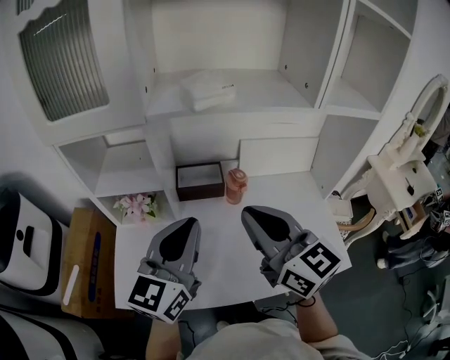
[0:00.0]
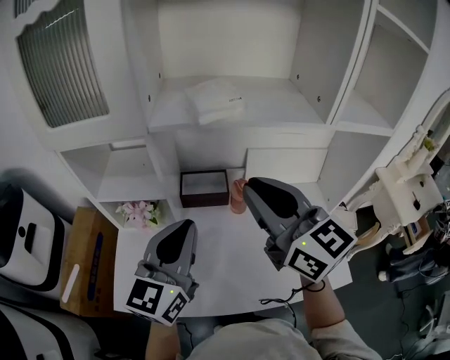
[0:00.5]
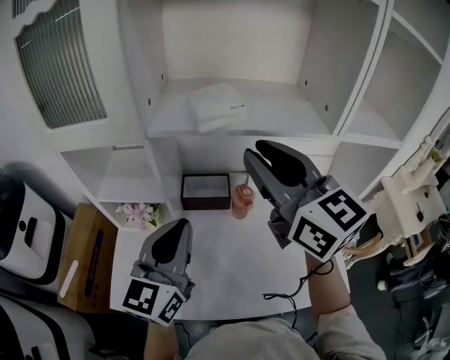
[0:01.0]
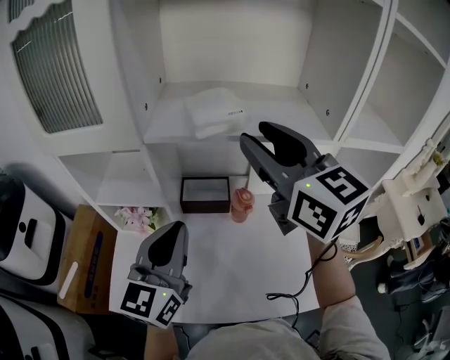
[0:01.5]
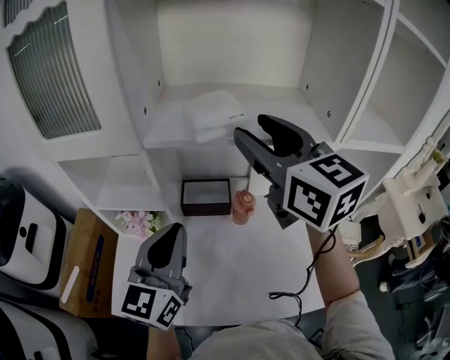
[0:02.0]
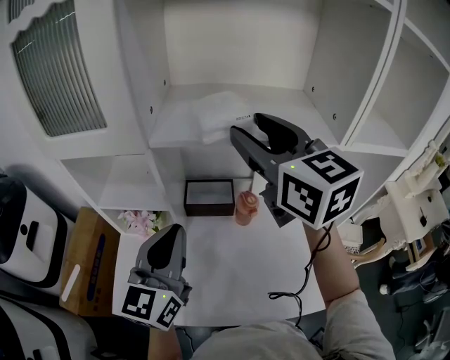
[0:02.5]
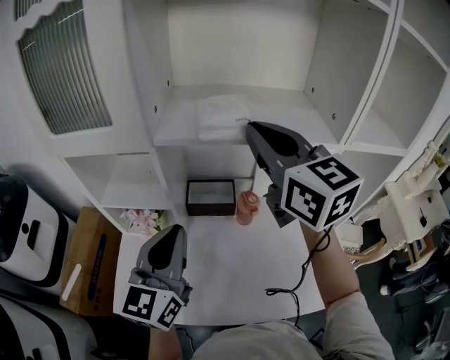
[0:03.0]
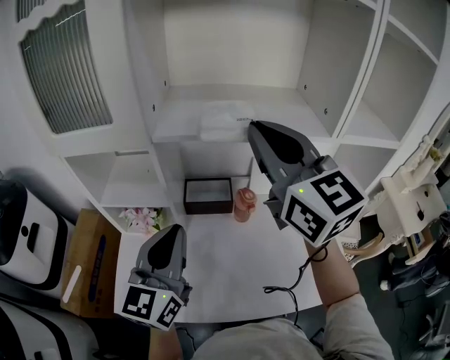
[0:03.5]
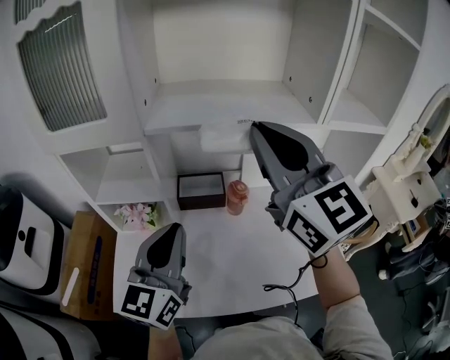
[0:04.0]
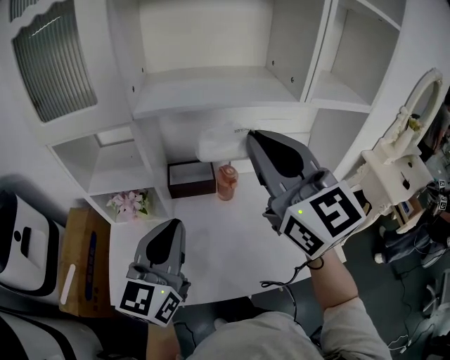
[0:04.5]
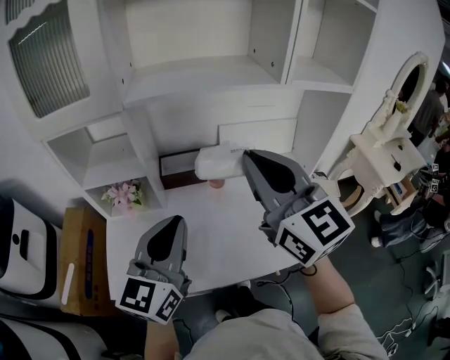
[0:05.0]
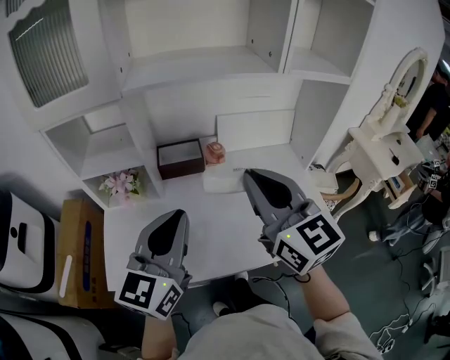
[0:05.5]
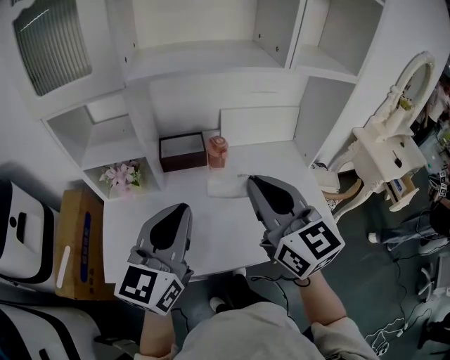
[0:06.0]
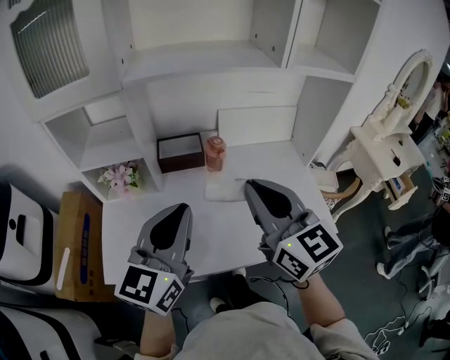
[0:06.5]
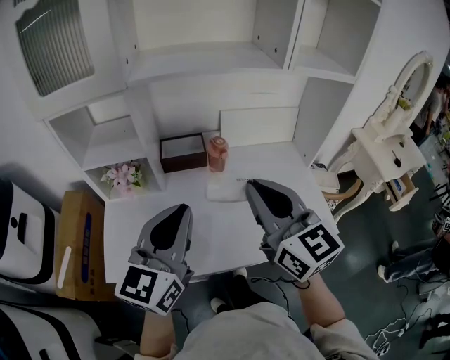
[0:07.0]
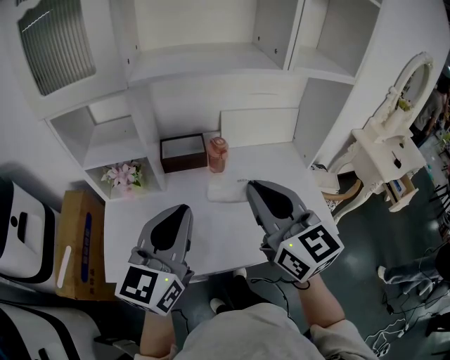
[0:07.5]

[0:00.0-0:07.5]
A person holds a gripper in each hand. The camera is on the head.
0:00.0 to 0:02.0: The right gripper heads forward and upward, covering approximately 25 cm, and opens. The left gripper heads forward, covering about 5 cm.
0:02.0 to 0:04.0: The right gripper is displaced backward by approximately 10 cm, and closes its fingers.
0:04.0 to 0:05.5: The right gripper is displaced downward and backward by roughly 20 cm. The left gripper moves backward, some 10 cm.
0:05.5 to 0:07.5: The grippers move only a little.

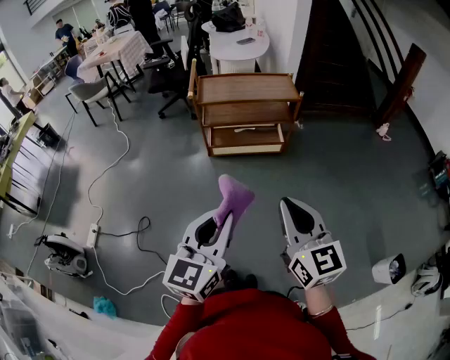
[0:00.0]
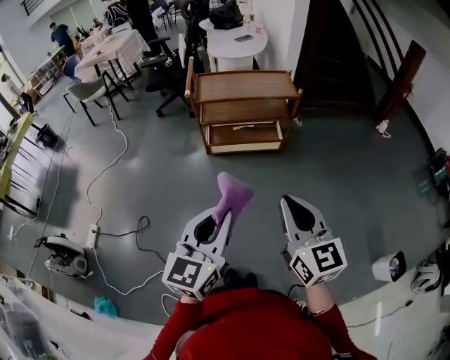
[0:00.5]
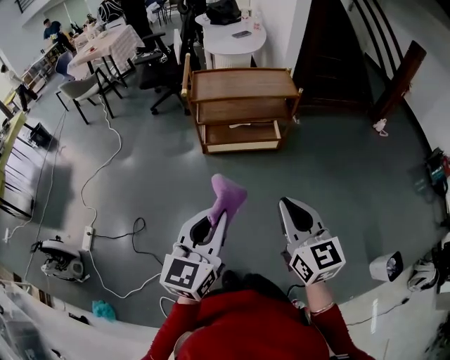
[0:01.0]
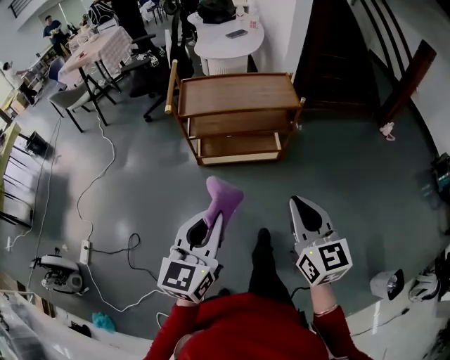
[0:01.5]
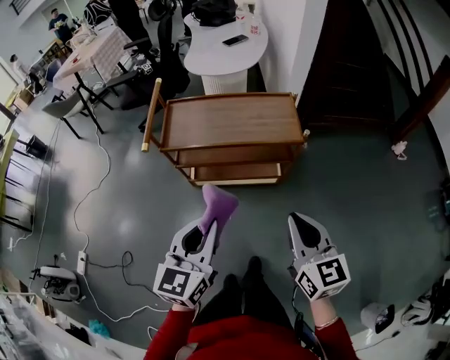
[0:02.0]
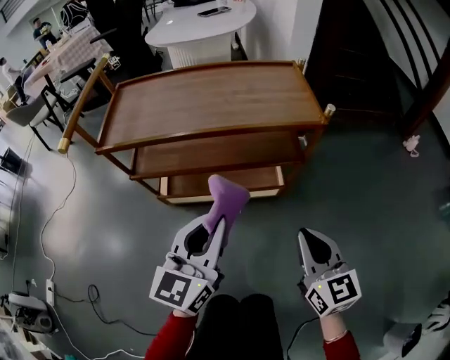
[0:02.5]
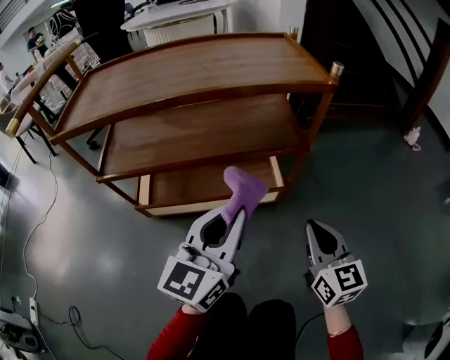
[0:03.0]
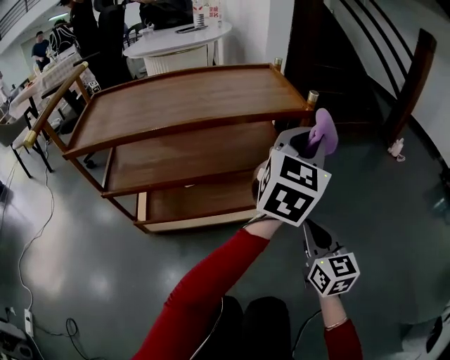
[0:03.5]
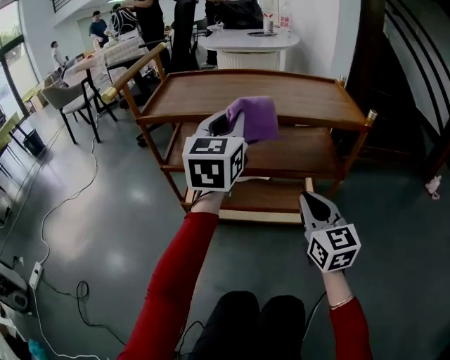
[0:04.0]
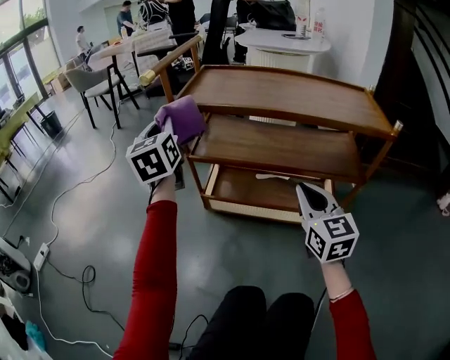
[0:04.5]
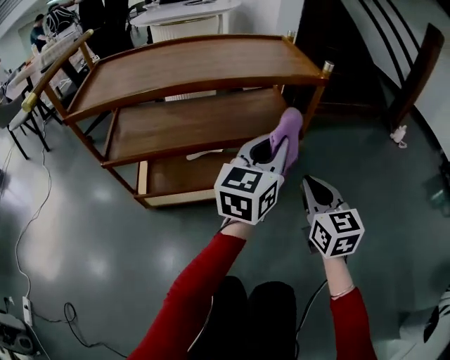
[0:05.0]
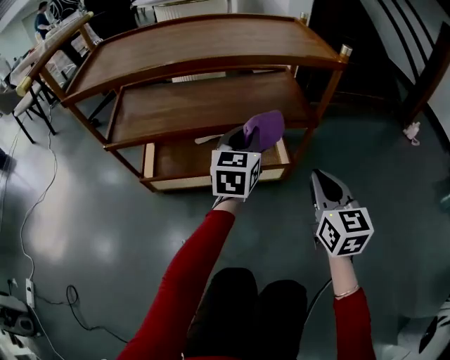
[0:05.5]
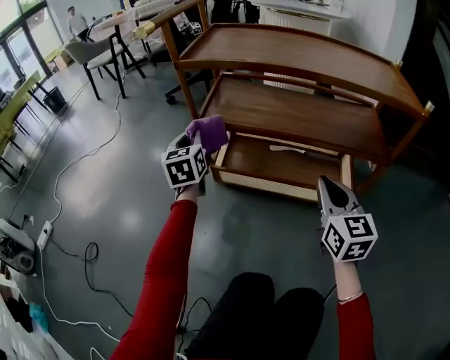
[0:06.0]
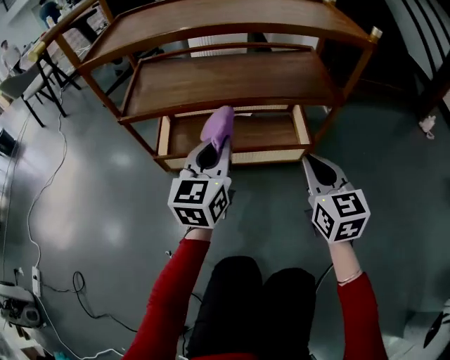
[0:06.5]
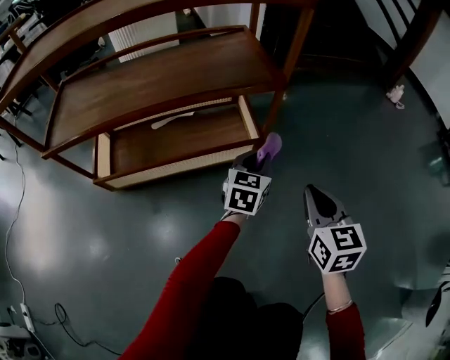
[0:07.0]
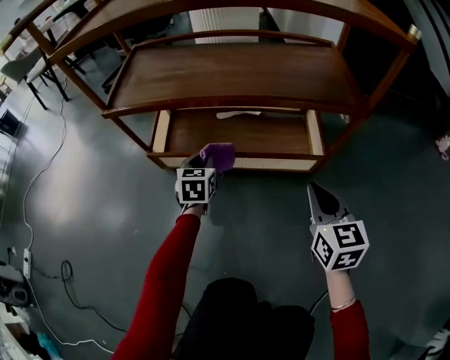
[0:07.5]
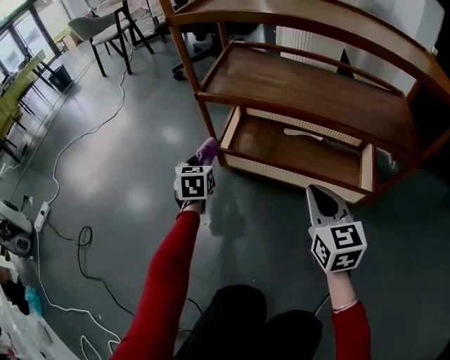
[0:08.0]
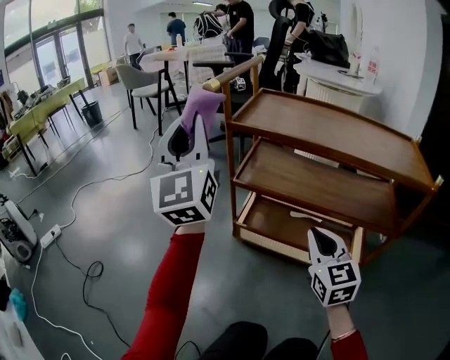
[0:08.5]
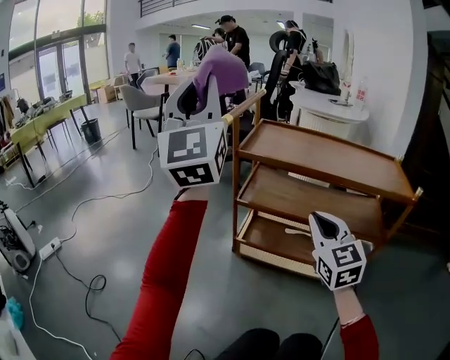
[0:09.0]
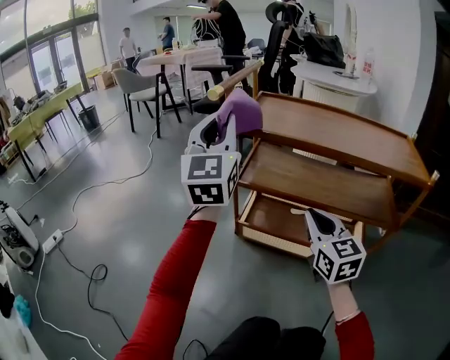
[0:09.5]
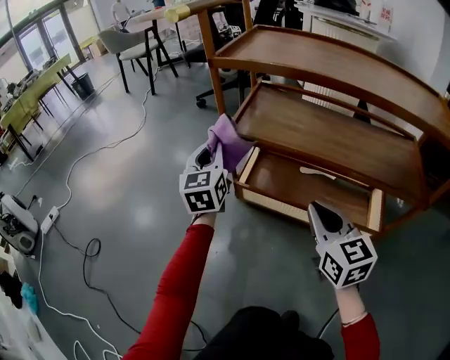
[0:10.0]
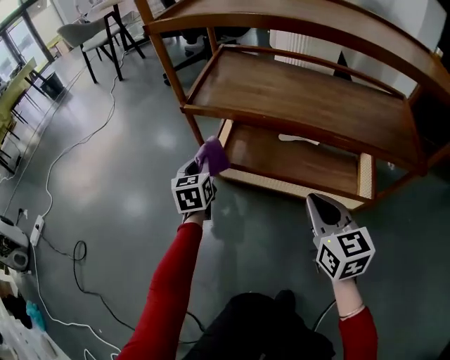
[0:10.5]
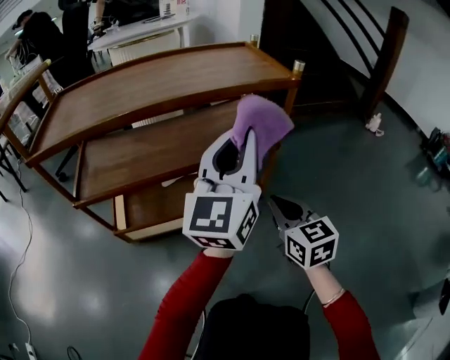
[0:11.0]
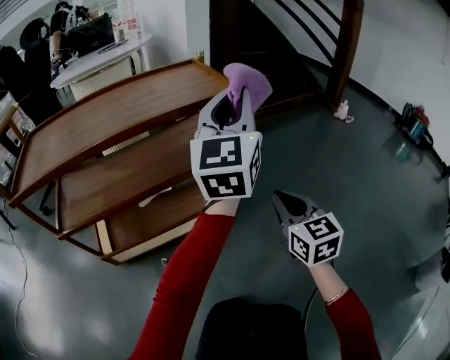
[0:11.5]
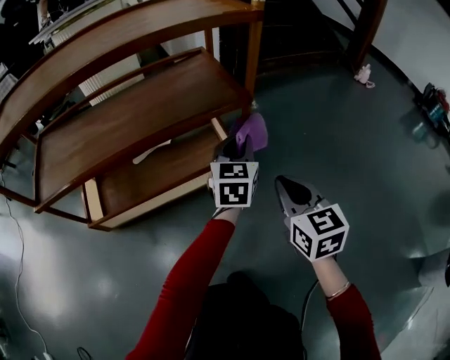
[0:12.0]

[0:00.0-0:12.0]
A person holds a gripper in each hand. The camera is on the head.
0:00.0 to 0:02.0: Both grippers travel together forward, about 30 cm.
0:02.0 to 0:04.0: The left gripper ends up approximately 35 cm from where it was, and changes its angle by approximately 20 degrees. Meanwhile the right gripper is displaced downward by roughly 30 cm.
0:04.0 to 0:06.0: The left gripper moves about 35 cm, and swivels some 30 degrees.
0:06.0 to 0:08.0: The right gripper moves downward, about 10 cm; the left gripper is displaced downward by some 20 cm.
0:08.0 to 0:10.0: The right gripper moves about 20 cm upward and comes back. Meanwhile the left gripper travels upward and back again, roughly 60 cm each way, and rotates about 30 degrees.
0:10.0 to 0:12.0: The right gripper swings up and down, about 10 cm each way, with 2 reversals, and changes its angle by roughly 50 degrees. The left gripper swings up and down, approximately 40 cm each way, with 2 reversals, and rotates roughly 60 degrees.

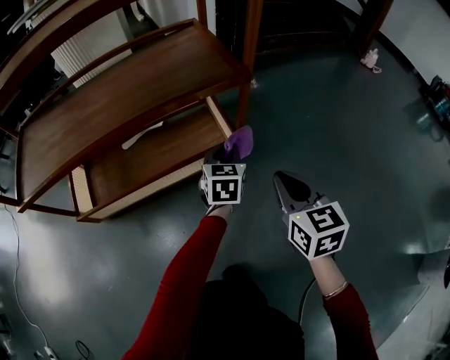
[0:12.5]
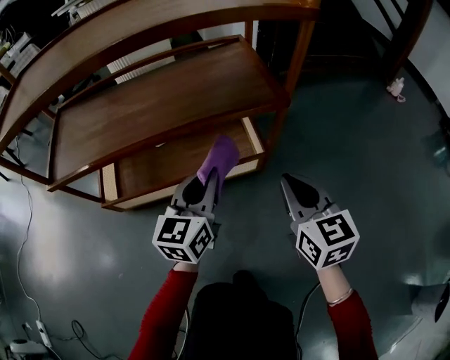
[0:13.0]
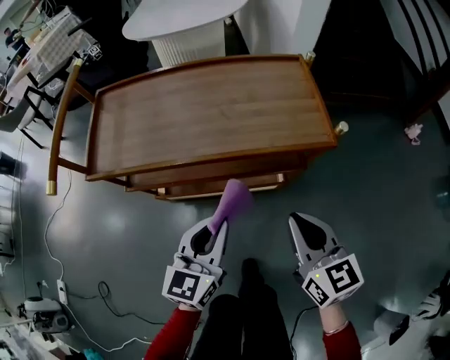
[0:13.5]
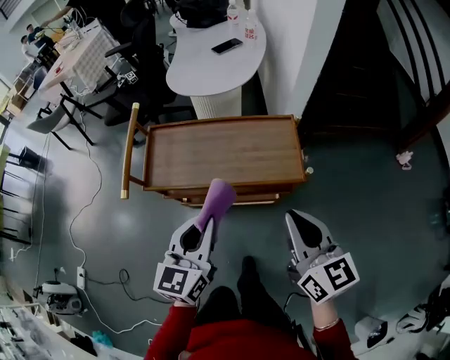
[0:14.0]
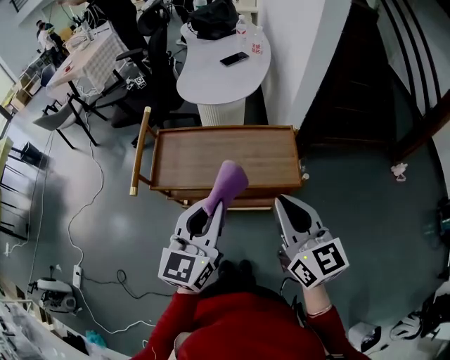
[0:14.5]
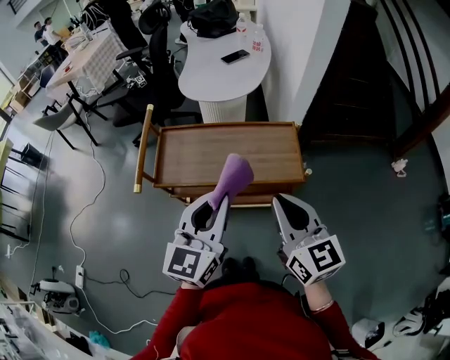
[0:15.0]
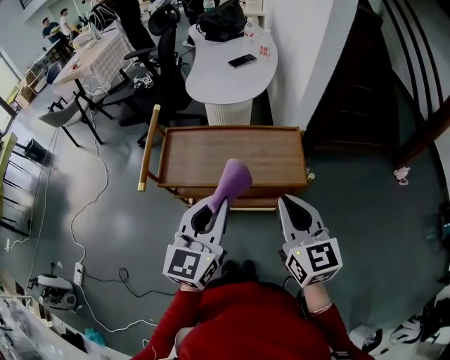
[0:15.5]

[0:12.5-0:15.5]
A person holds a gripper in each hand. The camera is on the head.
0:12.5 to 0:14.0: Both grippers travel together upward, roughly 60 cm. The right gripper swivels approximately 30 degrees. The left gripper swivels about 30 degrees.
0:14.0 to 0:15.5: The left gripper shifts some 5 cm upward.

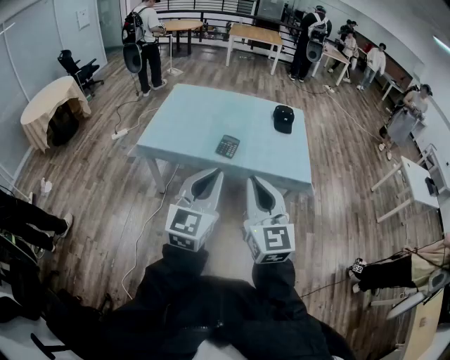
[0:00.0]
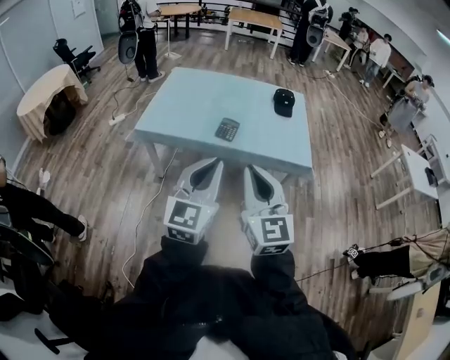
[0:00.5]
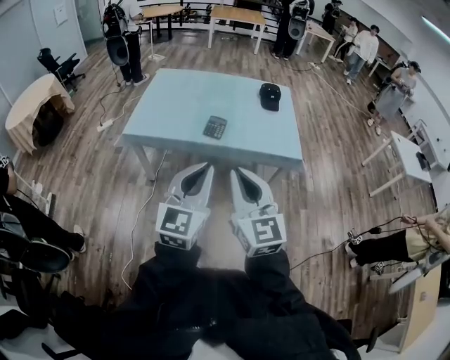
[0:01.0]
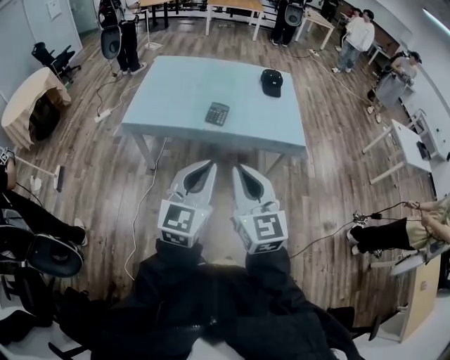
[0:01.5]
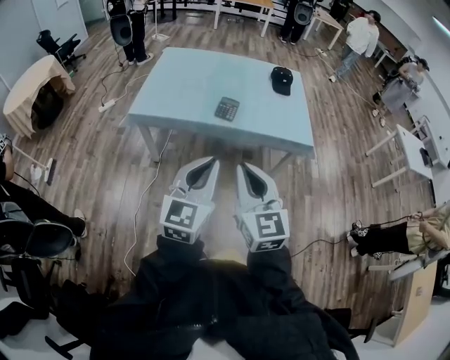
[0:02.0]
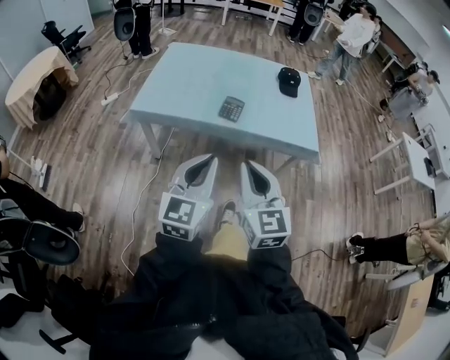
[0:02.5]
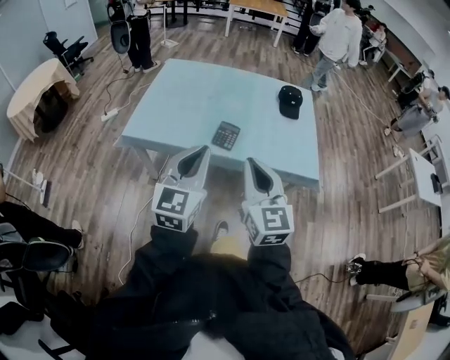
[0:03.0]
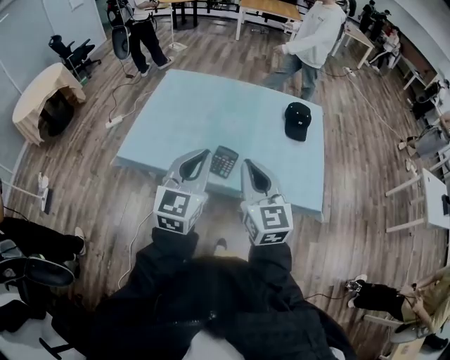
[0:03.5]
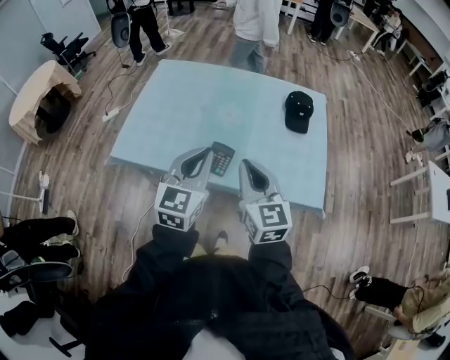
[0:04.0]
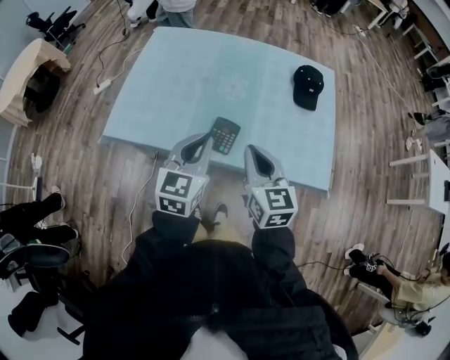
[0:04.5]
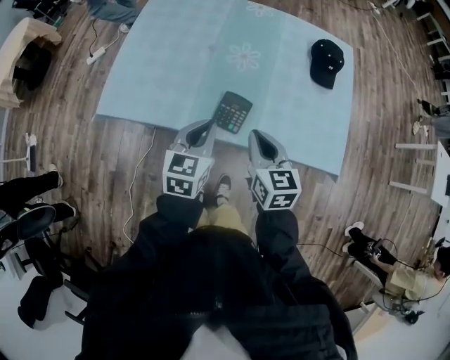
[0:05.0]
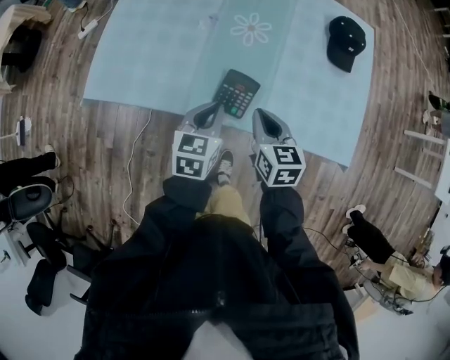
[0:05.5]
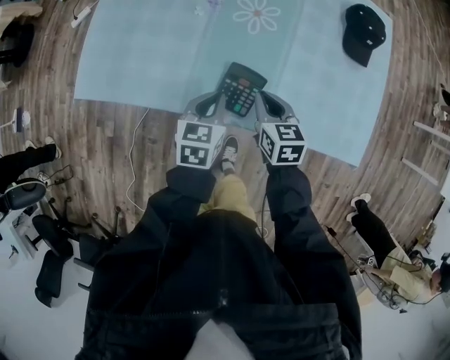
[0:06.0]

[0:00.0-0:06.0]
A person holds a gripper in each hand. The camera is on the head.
0:00.0 to 0:02.0: The right gripper shifts approximately 10 cm to the left and downward. Meanwhile the left gripper travels downward by approximately 5 cm.
0:02.0 to 0:04.0: The two grippers travel together, forward, approximately 40 cm.
0:04.0 to 0:06.0: The right gripper moves downward and forward, approximately 35 cm, and angles its fingers downward, by roughly 30 degrees; the left gripper travels downward by approximately 30 cm, and points its fingers some 30 degrees further downward.
